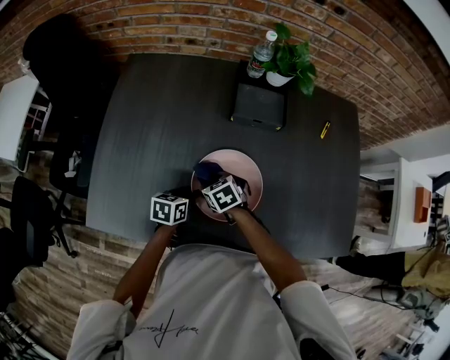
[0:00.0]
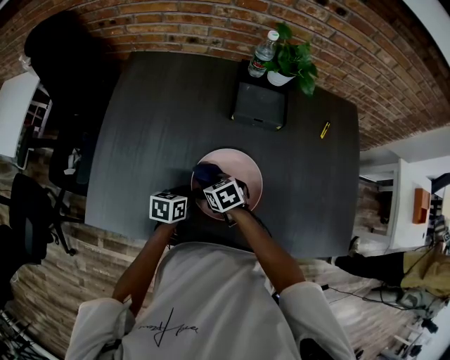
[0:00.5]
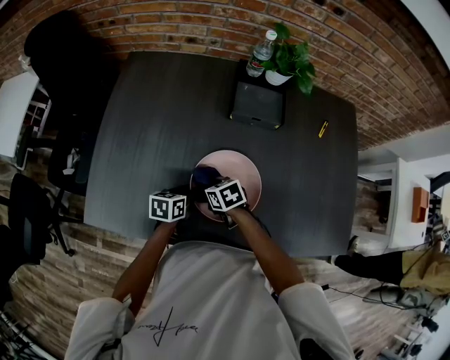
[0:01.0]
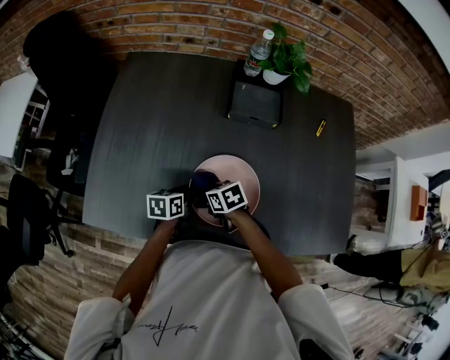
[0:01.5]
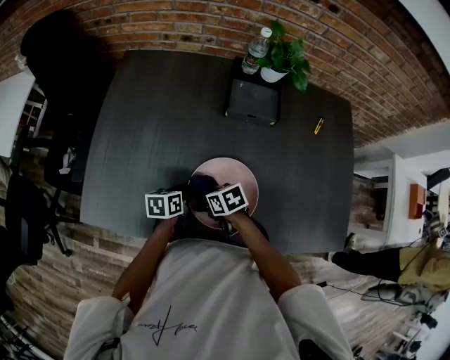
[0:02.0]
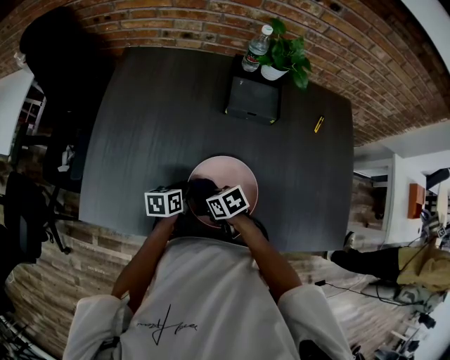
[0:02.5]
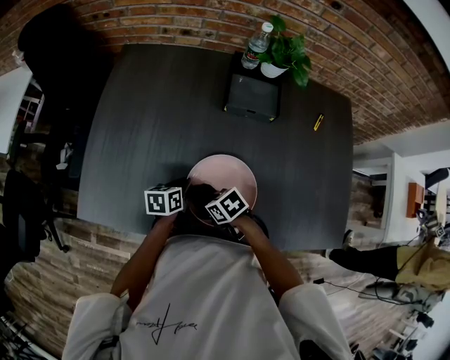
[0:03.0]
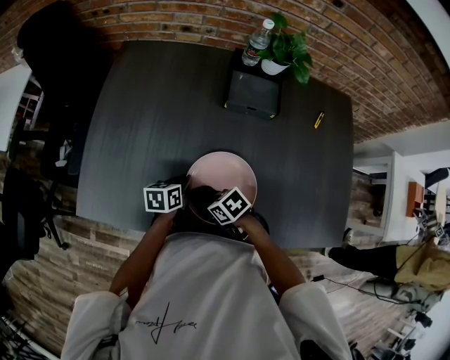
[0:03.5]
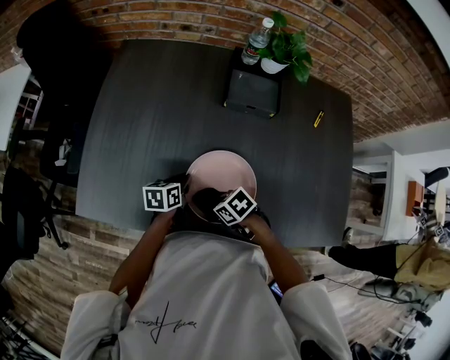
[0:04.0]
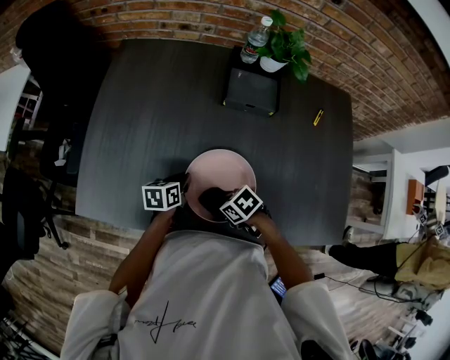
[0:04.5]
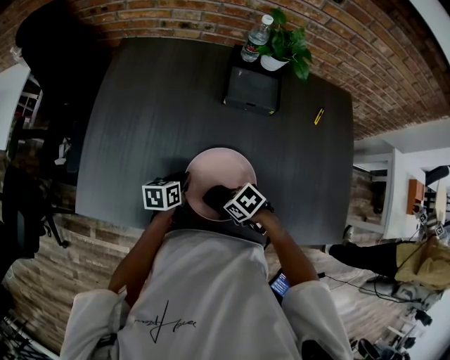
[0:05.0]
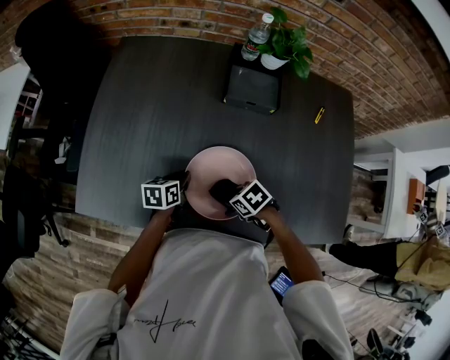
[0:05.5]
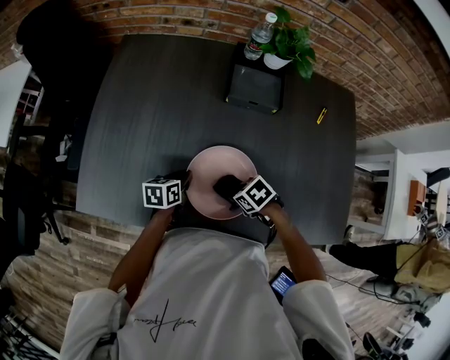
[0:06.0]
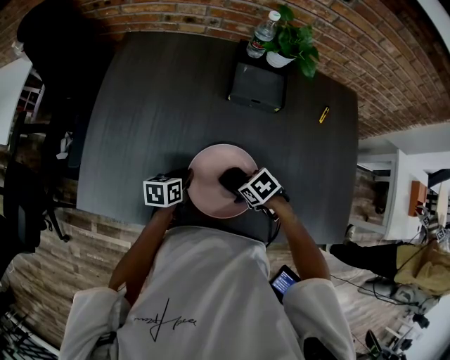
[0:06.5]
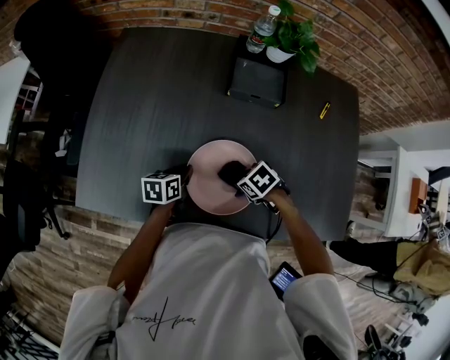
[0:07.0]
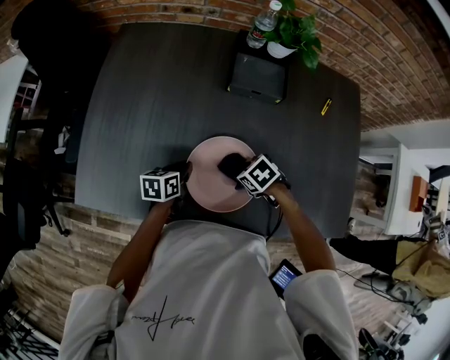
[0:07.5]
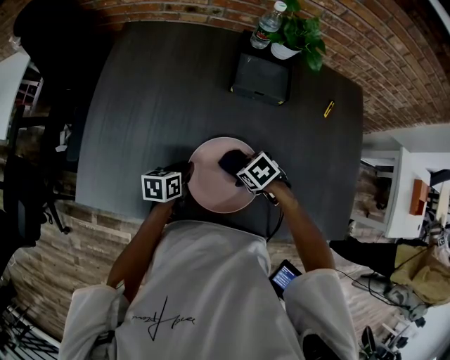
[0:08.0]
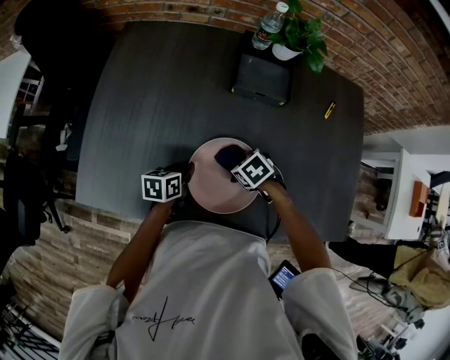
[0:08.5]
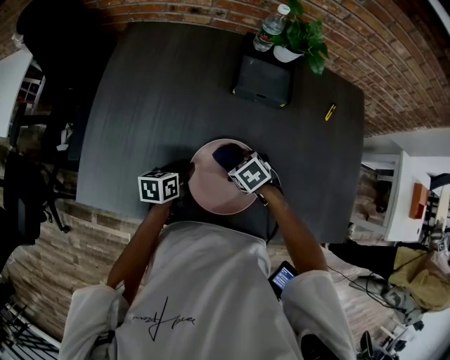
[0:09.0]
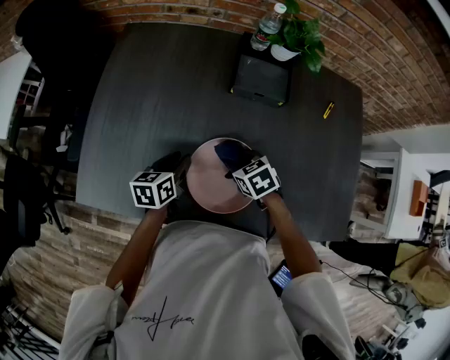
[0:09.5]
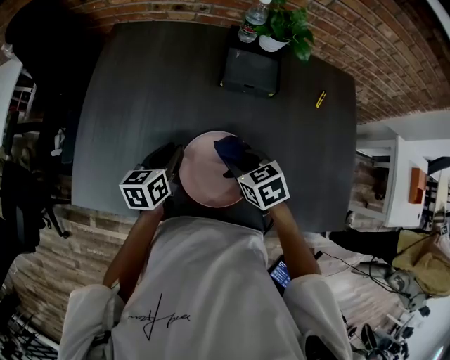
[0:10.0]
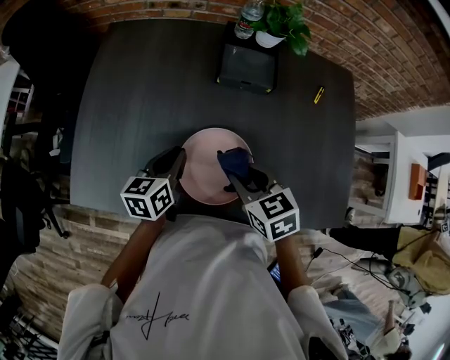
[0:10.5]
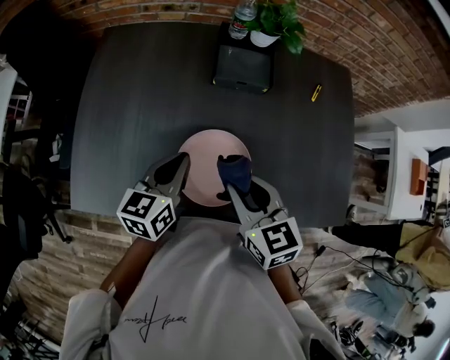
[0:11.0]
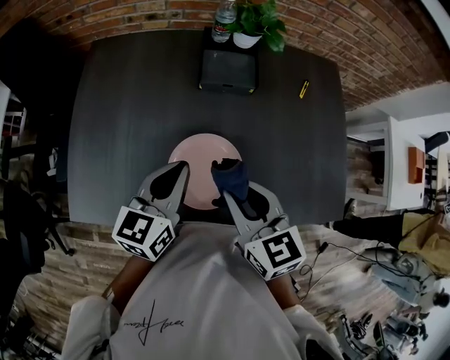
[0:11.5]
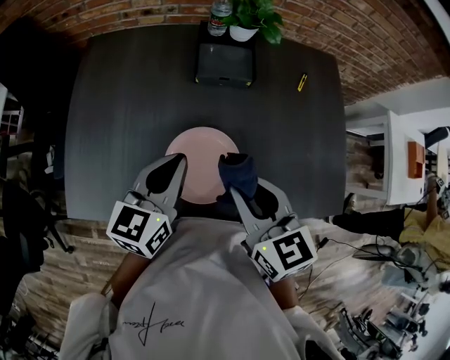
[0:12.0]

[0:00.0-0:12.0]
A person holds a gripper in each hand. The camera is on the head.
0:00.0 to 0:02.0: The right gripper shifts about 5 cm backward, and rotates about 20 degrees.
0:02.0 to 0:04.0: The right gripper shifts by approximately 10 cm, and swivels approximately 20 degrees.
0:04.0 to 0:06.0: The right gripper changes place by some 10 cm.
0:06.0 to 0:08.0: The right gripper changes place by approximately 5 cm.
0:08.0 to 0:10.0: Both grippers travel together upward, some 10 cm. The right gripper rotates some 30 degrees.
0:10.0 to 0:12.0: The left gripper goes approximately 15 cm upward and to the right, changes its angle by some 20 degrees, and closes its fingers. Meanwhile the right gripper travels upward and backward by some 20 cm, and changes its angle by approximately 30 degrees.

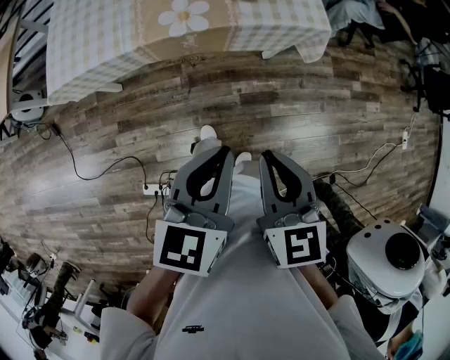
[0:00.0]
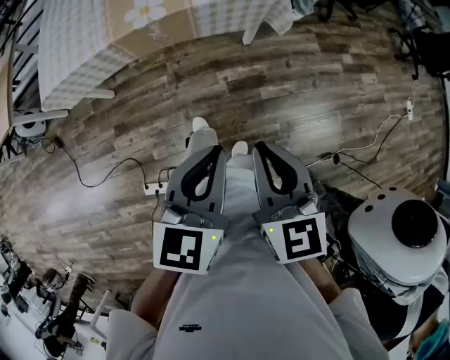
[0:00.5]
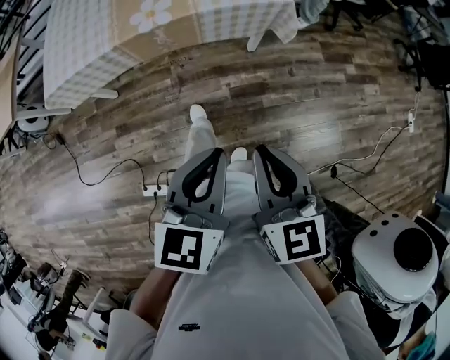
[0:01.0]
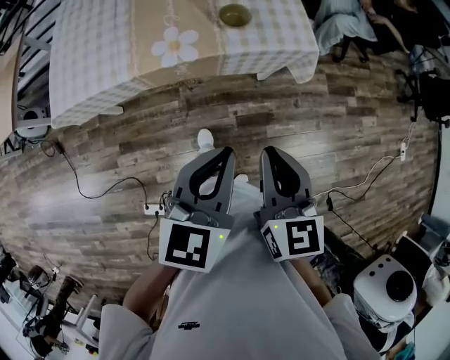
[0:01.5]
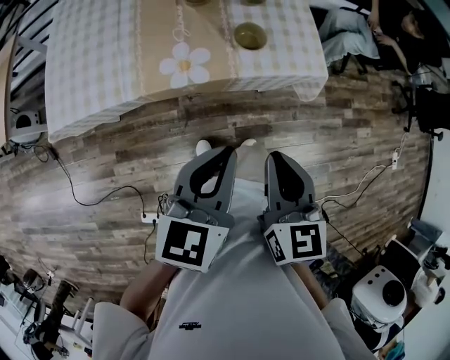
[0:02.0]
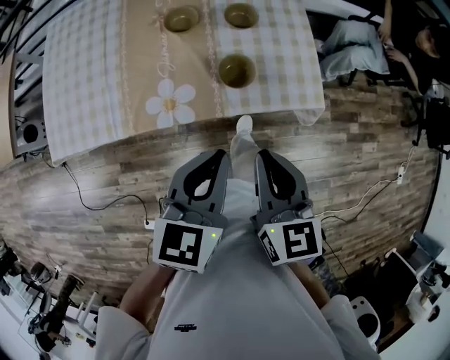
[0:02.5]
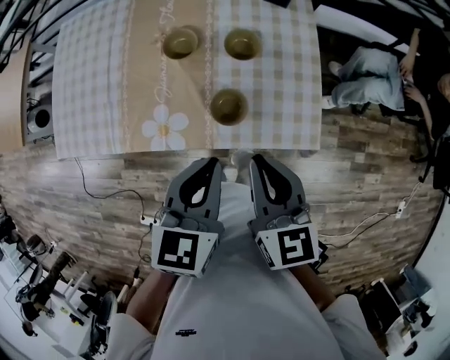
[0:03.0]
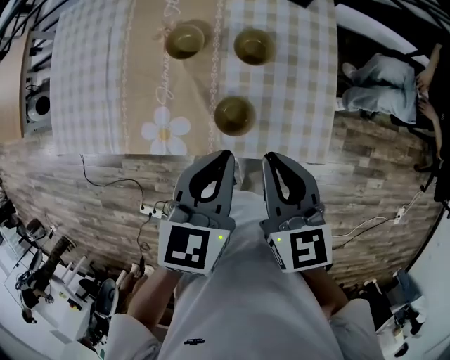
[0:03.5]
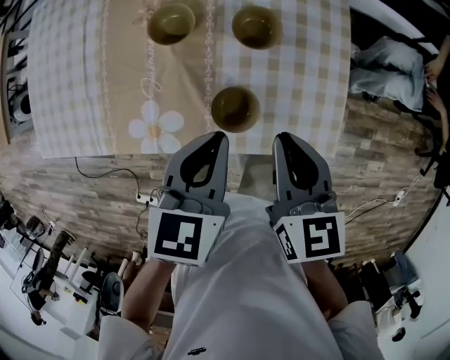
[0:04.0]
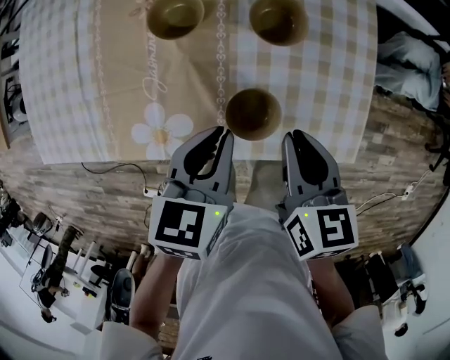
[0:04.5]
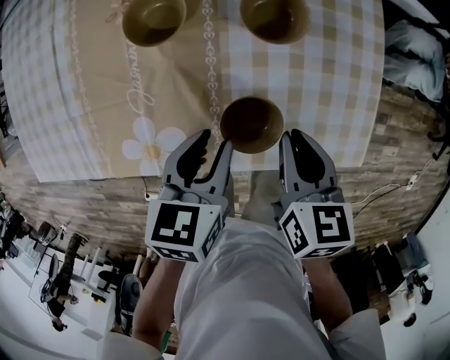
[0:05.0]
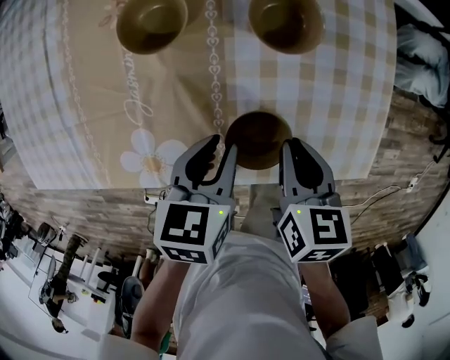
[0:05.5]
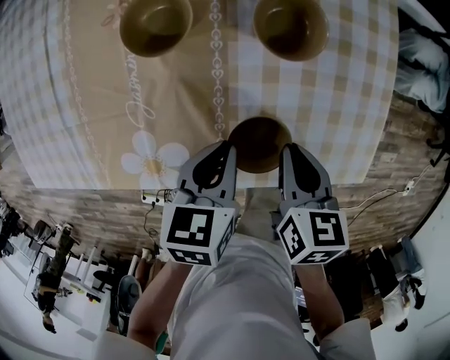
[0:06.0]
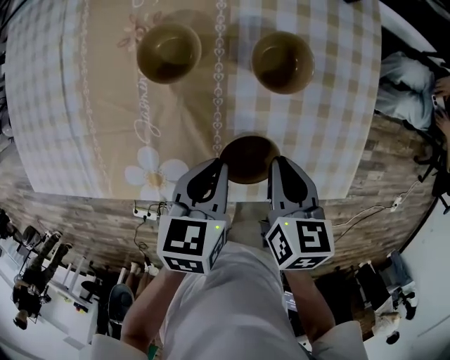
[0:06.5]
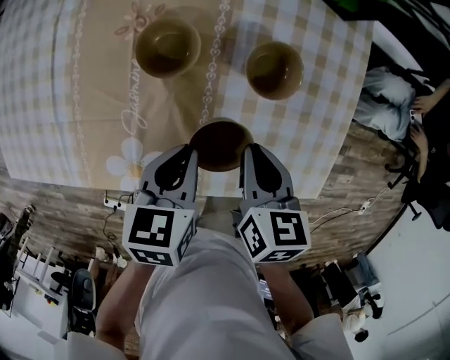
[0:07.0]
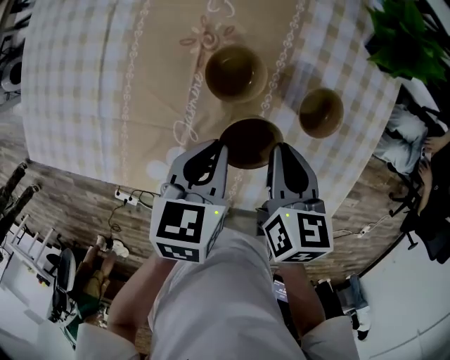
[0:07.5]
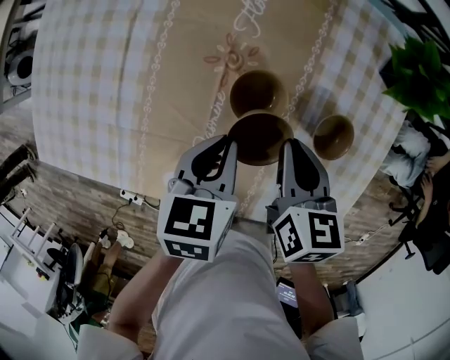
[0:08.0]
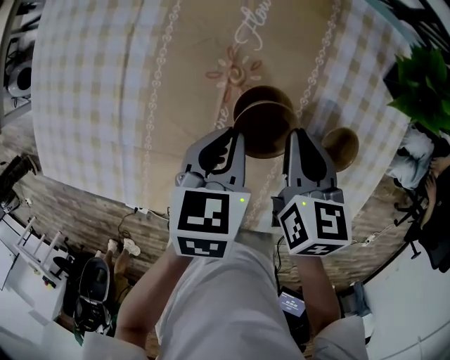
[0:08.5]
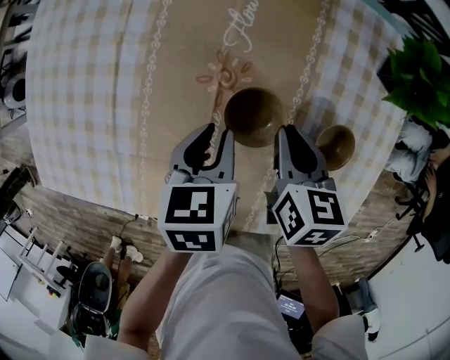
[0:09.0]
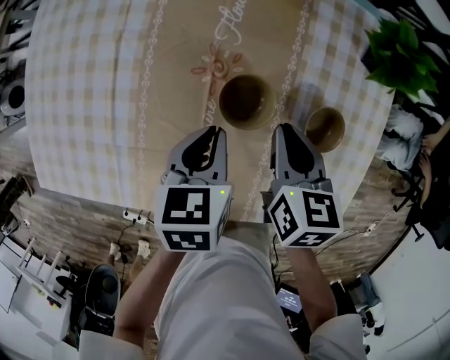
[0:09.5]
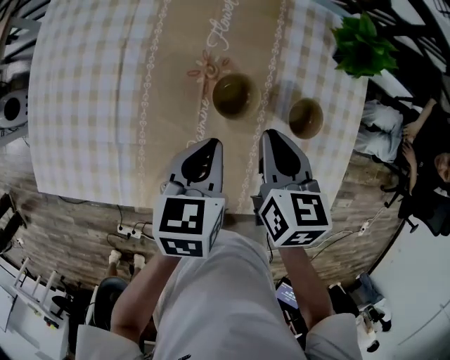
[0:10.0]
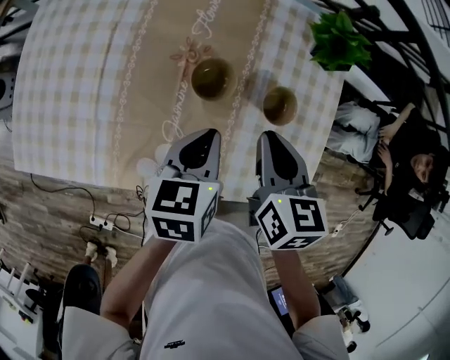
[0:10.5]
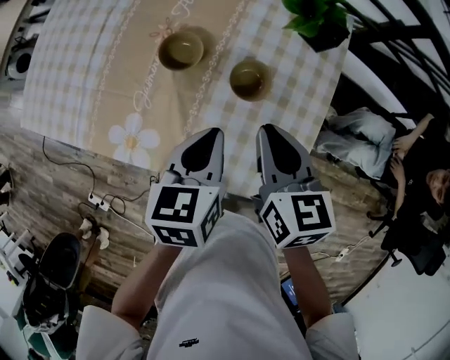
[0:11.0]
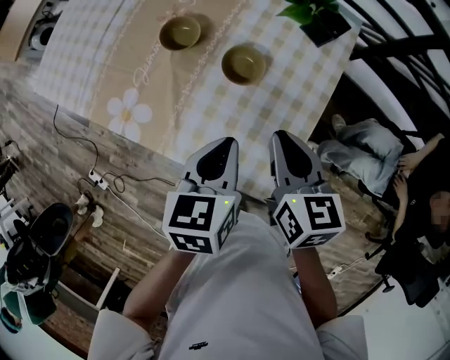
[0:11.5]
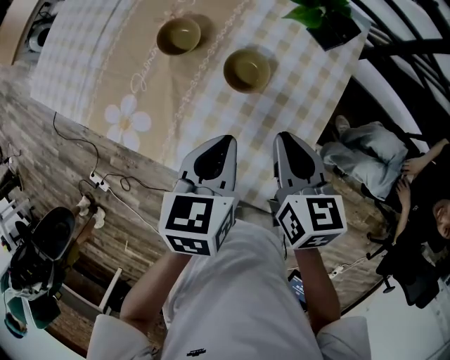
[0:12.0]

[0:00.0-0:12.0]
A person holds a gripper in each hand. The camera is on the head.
0:00.0 to 0:02.0: The grippers both shift forward by approximately 20 cm.
0:02.0 to 0:04.0: Both grippers travel together forward, about 35 cm. The left gripper turns by roughly 20 degrees.
0:04.0 to 0:06.0: The grippers both shift downward by approximately 20 cm. The right gripper rotates roughly 30 degrees. The left gripper turns by roughly 20 degrees, and opens, then closes once more.
0:06.0 to 0:08.0: The left gripper moves to the left, forward and upward, approximately 20 cm, while the right gripper is displaced forward, to the left and upward by roughly 25 cm.
0:08.0 to 0:10.0: The two grippers go roughly 5 cm upward.
0:10.0 to 0:12.0: The right gripper moves some 30 cm, and rotates about 20 degrees. The left gripper shifts by some 30 cm, and changes its angle by some 20 degrees.

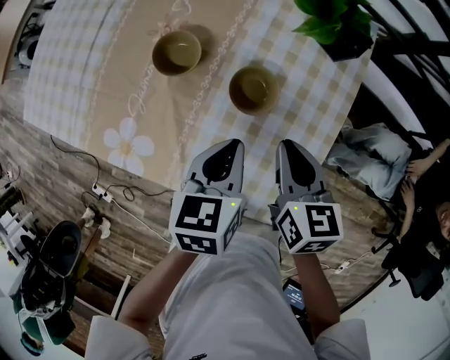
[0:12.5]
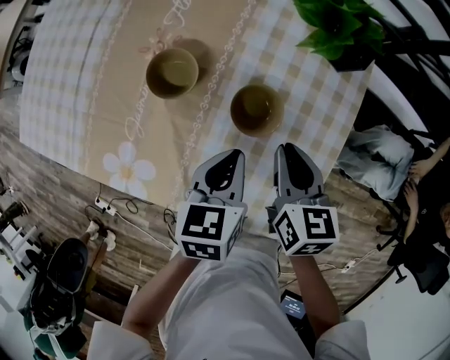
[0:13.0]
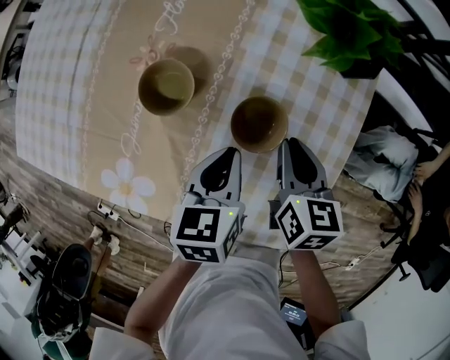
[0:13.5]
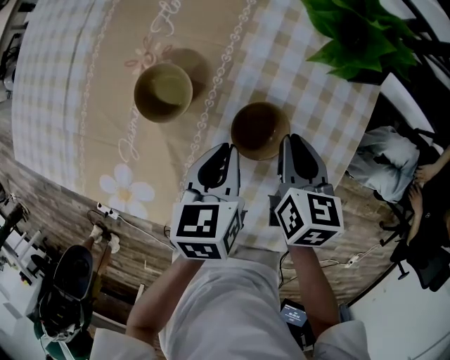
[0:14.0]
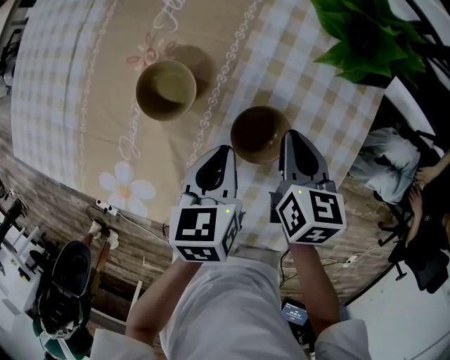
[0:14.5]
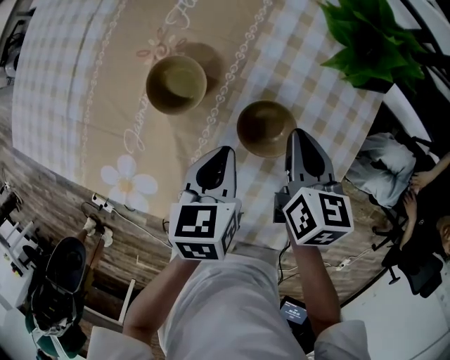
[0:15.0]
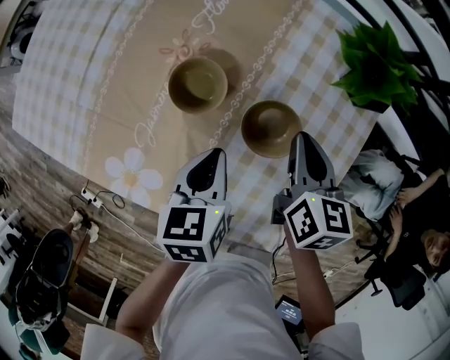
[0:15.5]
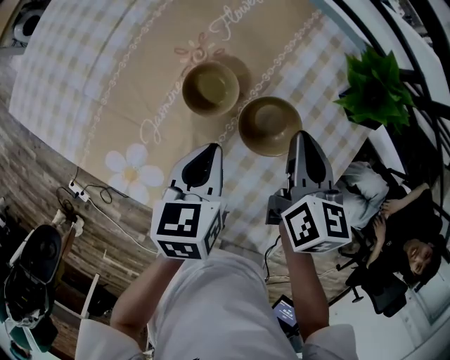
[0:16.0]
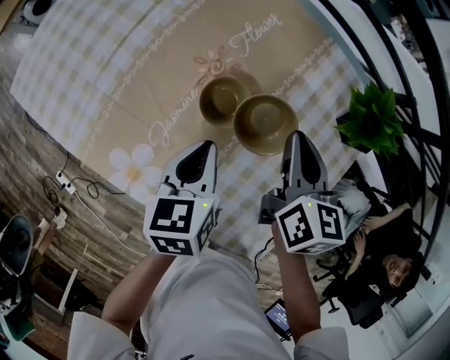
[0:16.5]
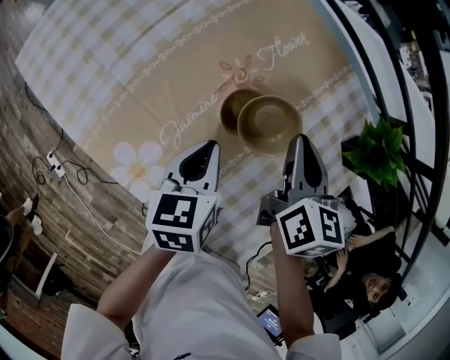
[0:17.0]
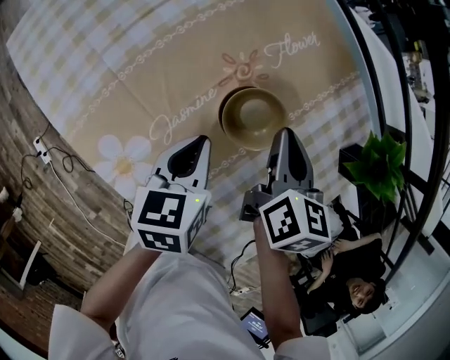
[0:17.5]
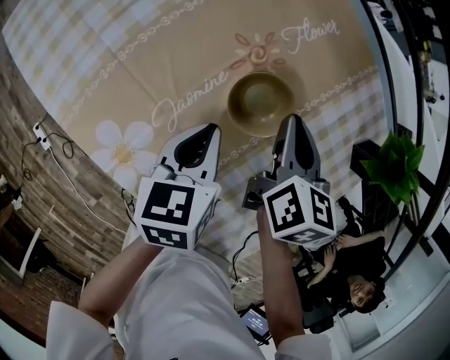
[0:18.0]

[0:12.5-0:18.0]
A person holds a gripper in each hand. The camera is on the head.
0:12.5 to 0:14.5: The left gripper moves downward and forward, roughly 10 cm; the right gripper moves forward and downward, approximately 15 cm.
0:14.5 to 0:16.0: The right gripper heads upward and to the left, covering roughly 15 cm. The left gripper heads to the left and upward, covering some 10 cm.
0:16.0 to 0:18.0: The right gripper travels to the left, downward and forward by about 15 cm; the left gripper goes some 10 cm to the left and downward.
